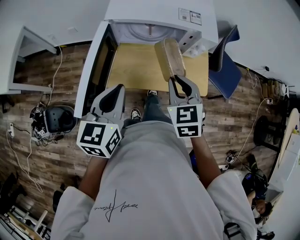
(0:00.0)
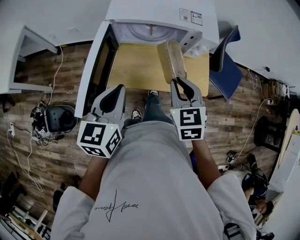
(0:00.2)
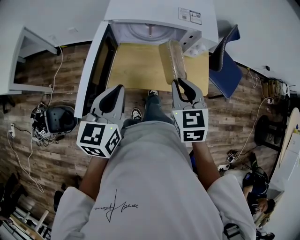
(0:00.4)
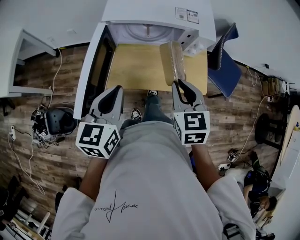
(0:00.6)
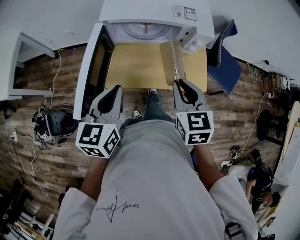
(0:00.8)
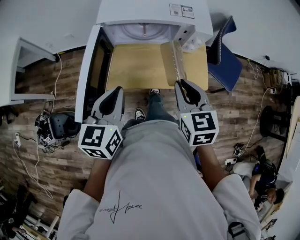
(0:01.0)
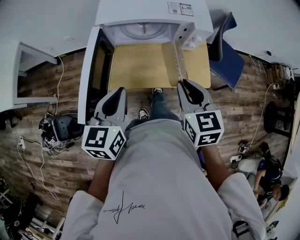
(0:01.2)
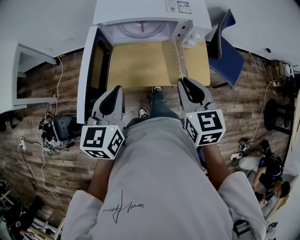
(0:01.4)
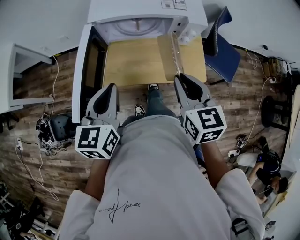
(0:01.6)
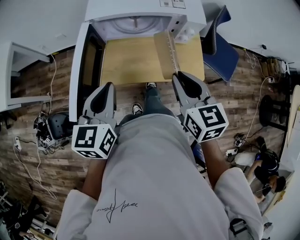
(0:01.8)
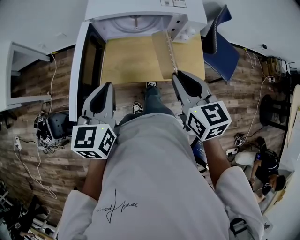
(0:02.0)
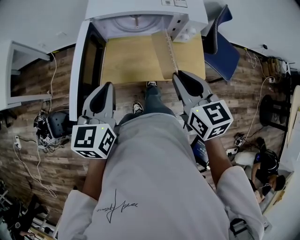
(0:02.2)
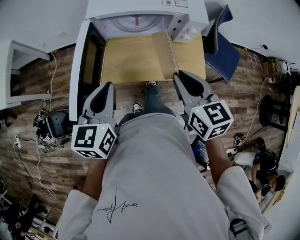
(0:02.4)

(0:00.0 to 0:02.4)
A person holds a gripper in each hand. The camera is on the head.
0:00.0 - 0:01.2: The grippers move only a little.
0:01.2 - 0:02.4: The grippers make only small movements.

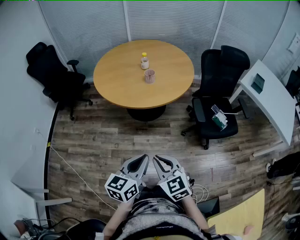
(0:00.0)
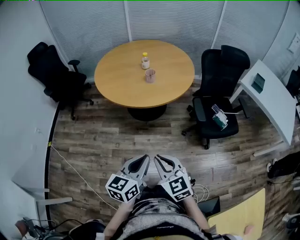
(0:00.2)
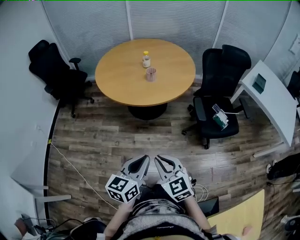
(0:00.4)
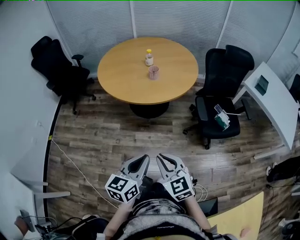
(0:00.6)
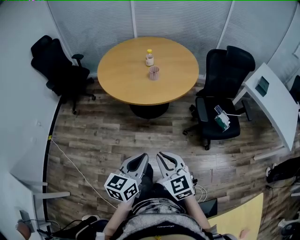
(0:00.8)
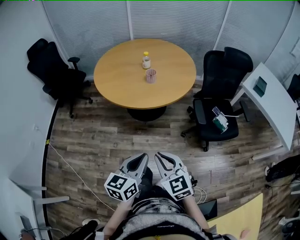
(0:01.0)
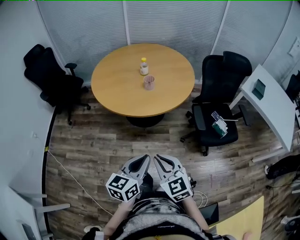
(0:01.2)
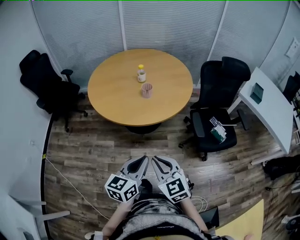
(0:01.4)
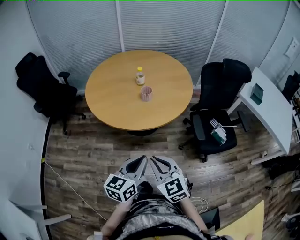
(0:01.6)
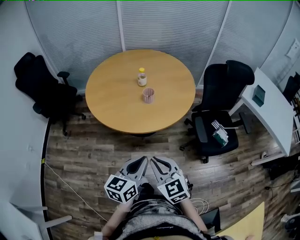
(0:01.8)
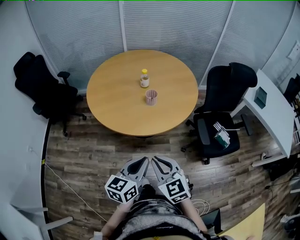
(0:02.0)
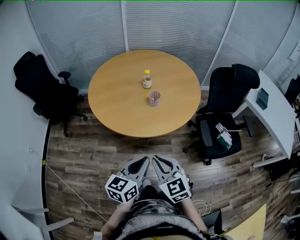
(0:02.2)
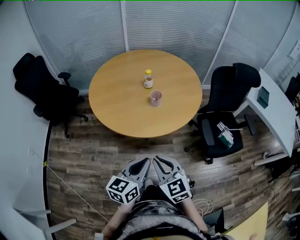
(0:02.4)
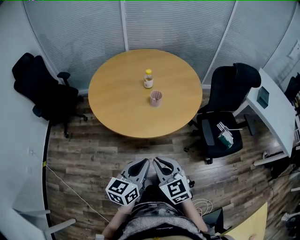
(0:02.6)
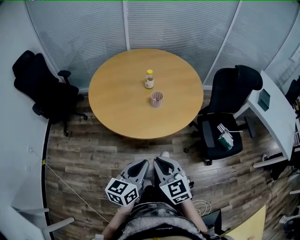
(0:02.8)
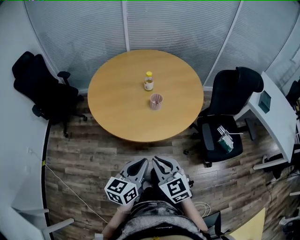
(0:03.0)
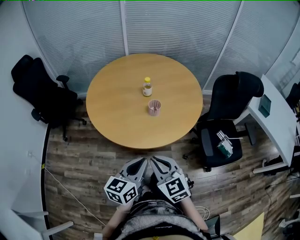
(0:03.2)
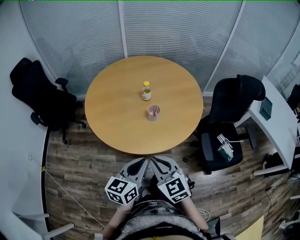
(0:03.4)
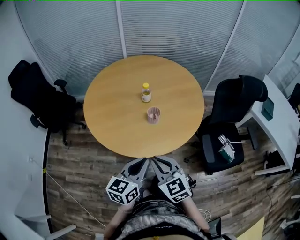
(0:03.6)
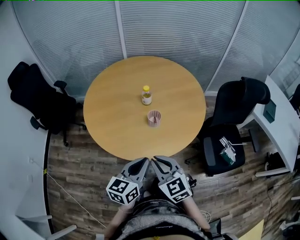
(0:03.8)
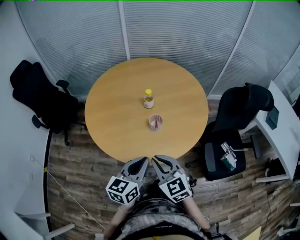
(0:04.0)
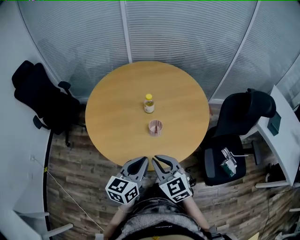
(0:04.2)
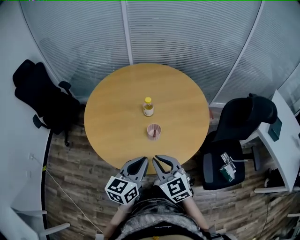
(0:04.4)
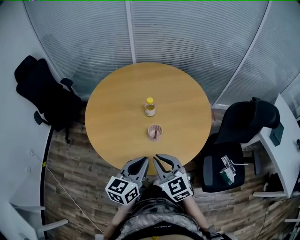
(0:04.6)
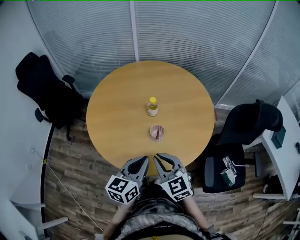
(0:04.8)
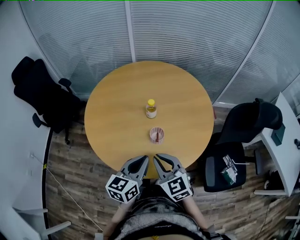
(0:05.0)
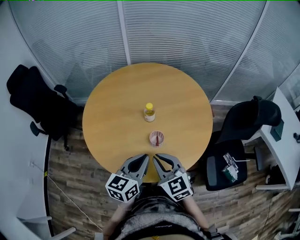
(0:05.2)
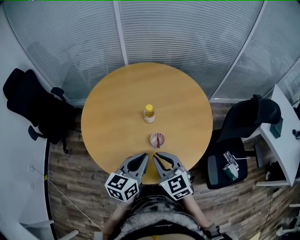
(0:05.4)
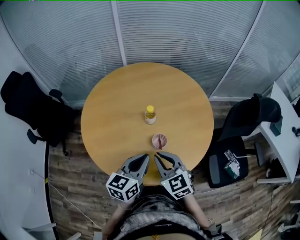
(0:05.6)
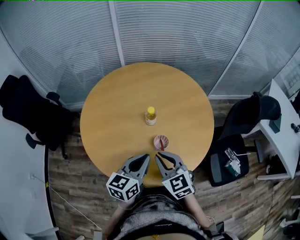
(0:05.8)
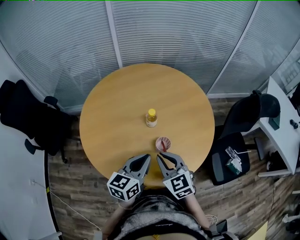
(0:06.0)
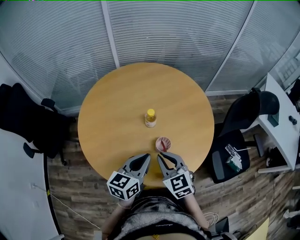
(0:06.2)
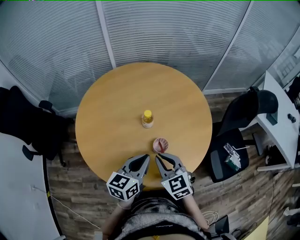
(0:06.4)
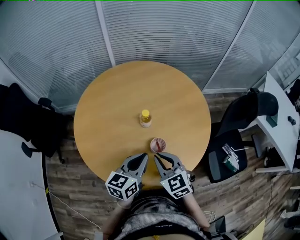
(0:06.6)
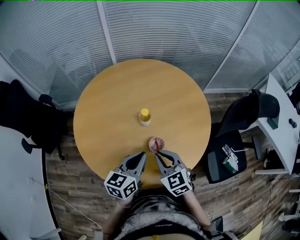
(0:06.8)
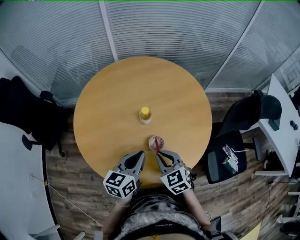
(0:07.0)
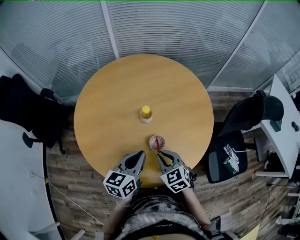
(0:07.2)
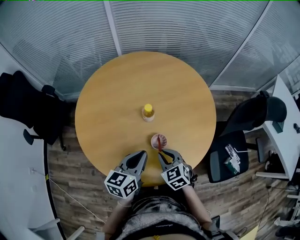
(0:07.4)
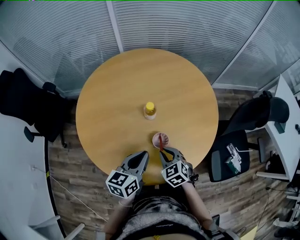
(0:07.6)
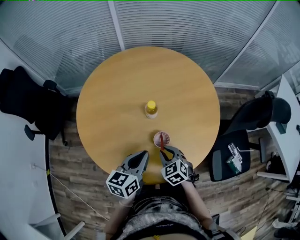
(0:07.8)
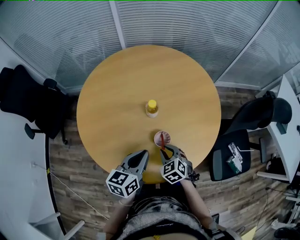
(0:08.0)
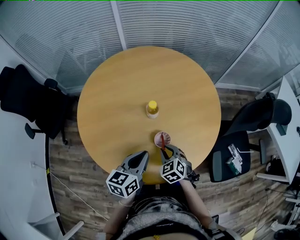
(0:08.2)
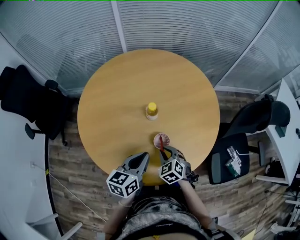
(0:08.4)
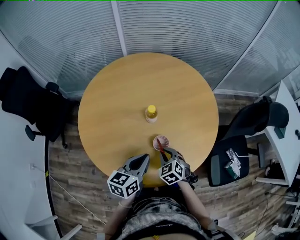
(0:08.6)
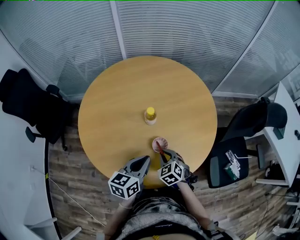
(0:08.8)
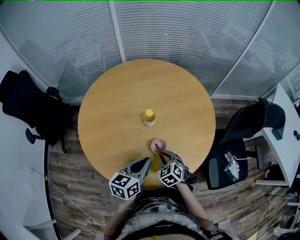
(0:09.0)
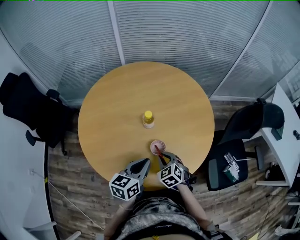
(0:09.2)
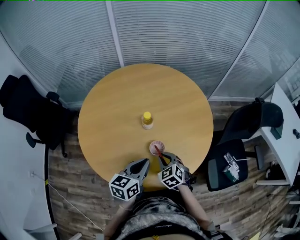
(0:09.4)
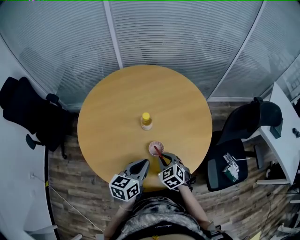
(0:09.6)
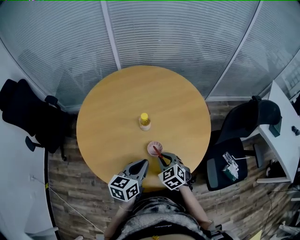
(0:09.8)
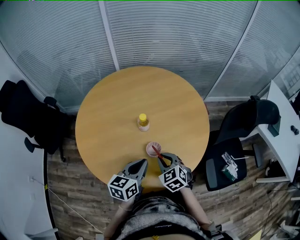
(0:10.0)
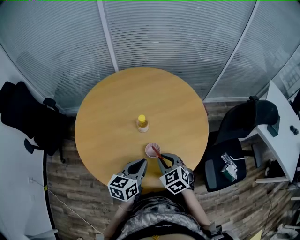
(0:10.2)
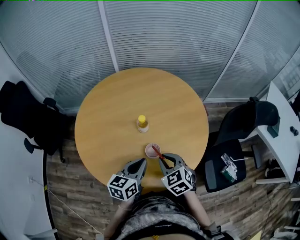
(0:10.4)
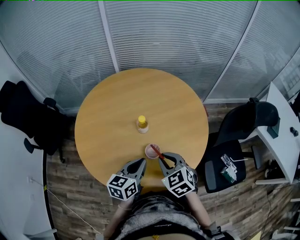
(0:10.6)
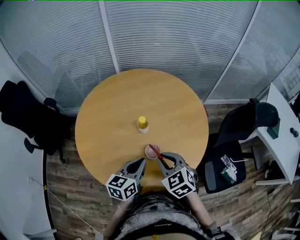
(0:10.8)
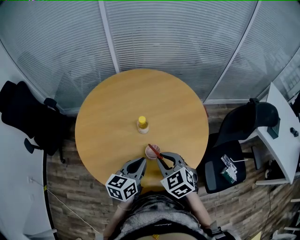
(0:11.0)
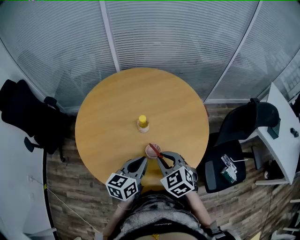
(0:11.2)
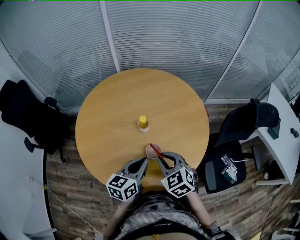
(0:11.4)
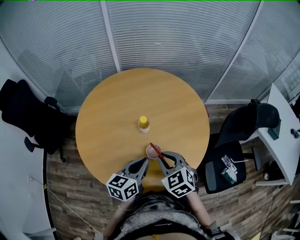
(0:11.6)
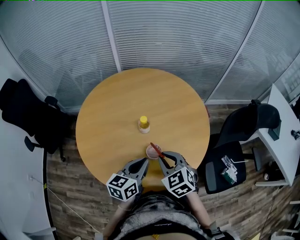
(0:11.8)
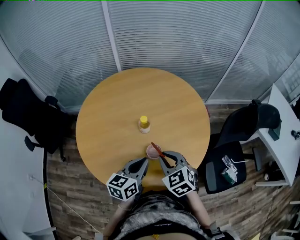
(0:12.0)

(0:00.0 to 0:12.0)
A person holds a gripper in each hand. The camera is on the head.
0:00.0 - 0:01.6: The two grippers go about 15 cm forward.
0:01.6 - 0:03.0: The grippers both shift forward and to the left by approximately 10 cm.
0:03.0 - 0:04.4: Both grippers travel together forward, roughly 20 cm.
0:04.4 - 0:06.0: The grippers both shift forward and to the left by roughly 15 cm.
0:06.0 - 0:07.6: The right gripper is displaced downward by about 15 cm, and rotates about 20 degrees. The left gripper moves about 5 cm.
0:07.6 - 0:09.0: The grippers stay close to where they were, moving slightly.
0:09.0 - 0:10.4: The right gripper moves upward, approximately 10 cm.
0:10.4 - 0:12.0: The grippers move only a little.

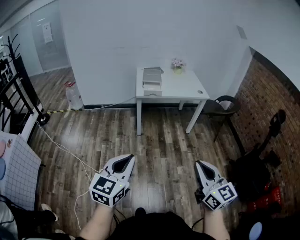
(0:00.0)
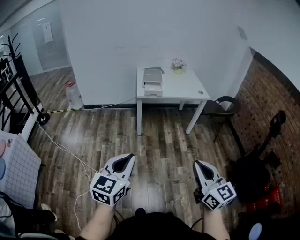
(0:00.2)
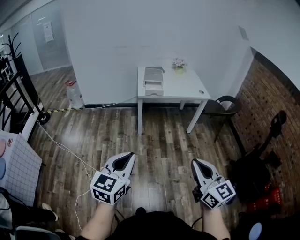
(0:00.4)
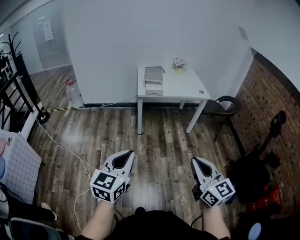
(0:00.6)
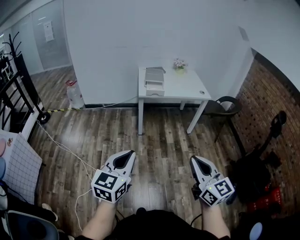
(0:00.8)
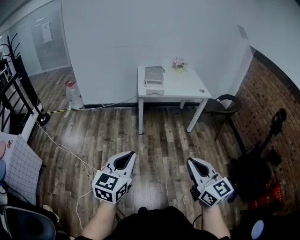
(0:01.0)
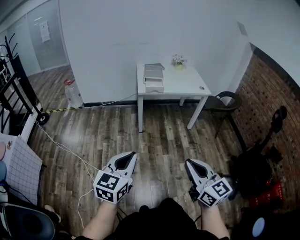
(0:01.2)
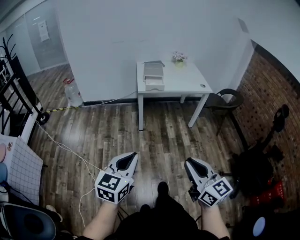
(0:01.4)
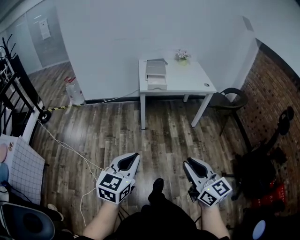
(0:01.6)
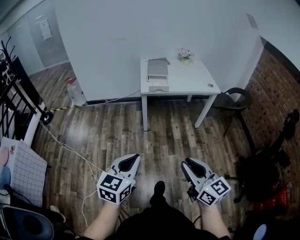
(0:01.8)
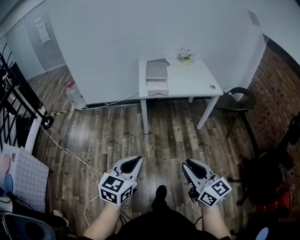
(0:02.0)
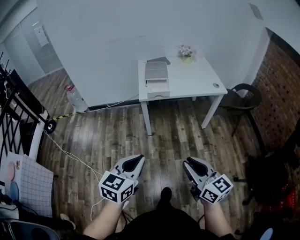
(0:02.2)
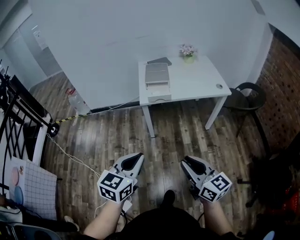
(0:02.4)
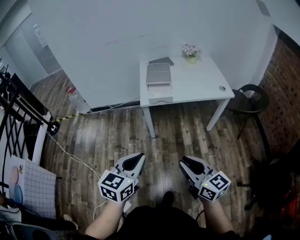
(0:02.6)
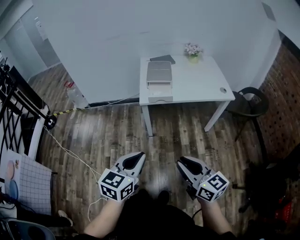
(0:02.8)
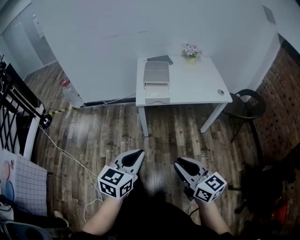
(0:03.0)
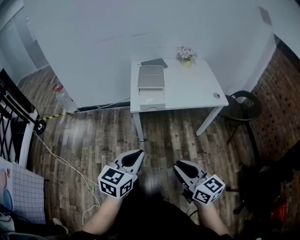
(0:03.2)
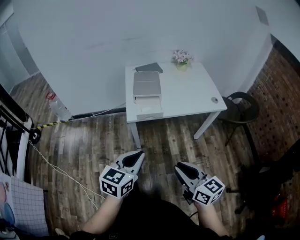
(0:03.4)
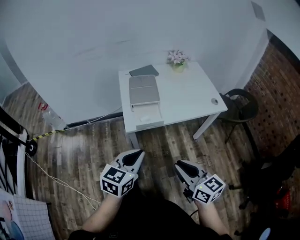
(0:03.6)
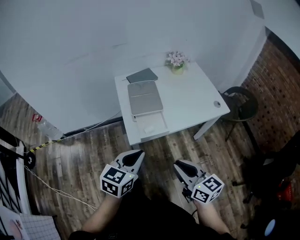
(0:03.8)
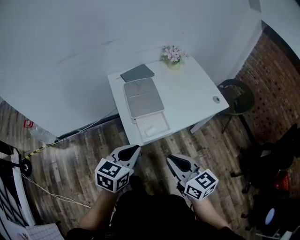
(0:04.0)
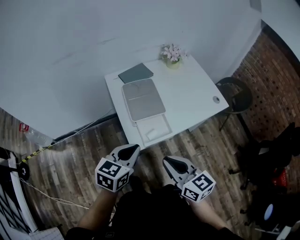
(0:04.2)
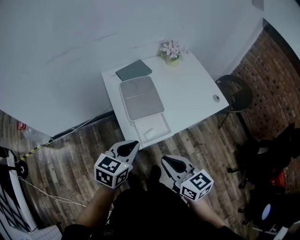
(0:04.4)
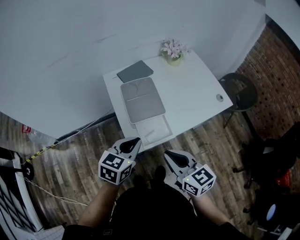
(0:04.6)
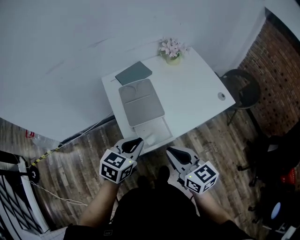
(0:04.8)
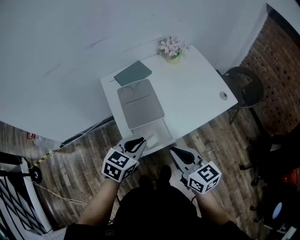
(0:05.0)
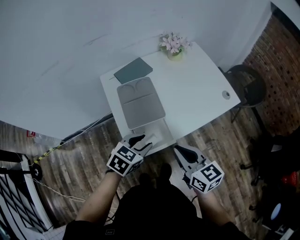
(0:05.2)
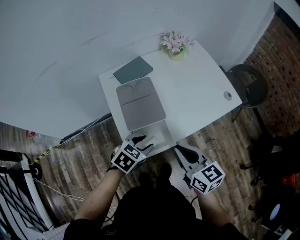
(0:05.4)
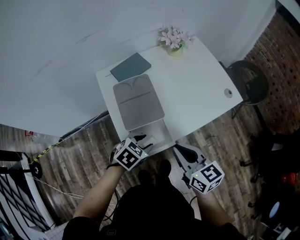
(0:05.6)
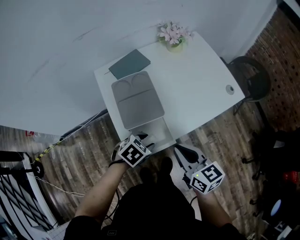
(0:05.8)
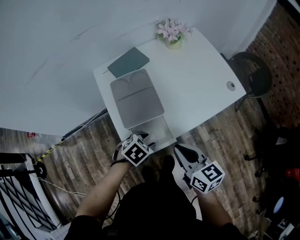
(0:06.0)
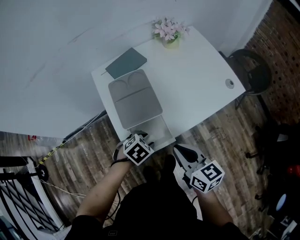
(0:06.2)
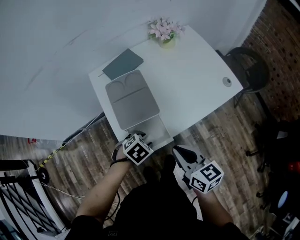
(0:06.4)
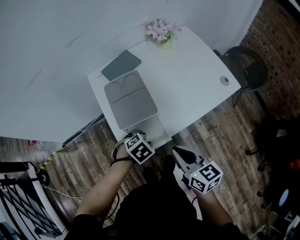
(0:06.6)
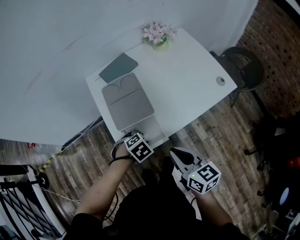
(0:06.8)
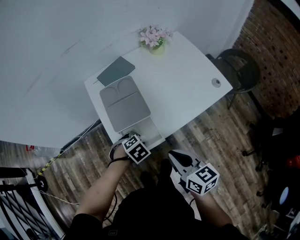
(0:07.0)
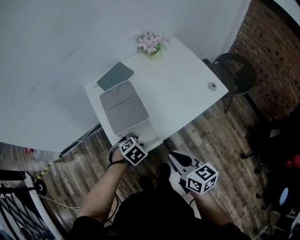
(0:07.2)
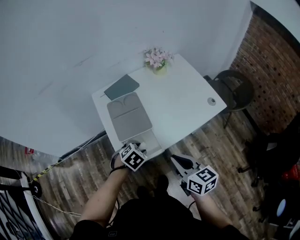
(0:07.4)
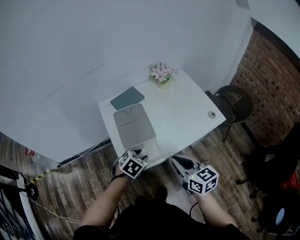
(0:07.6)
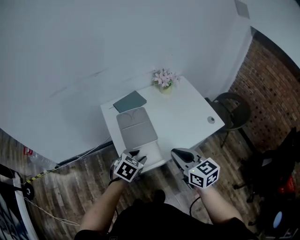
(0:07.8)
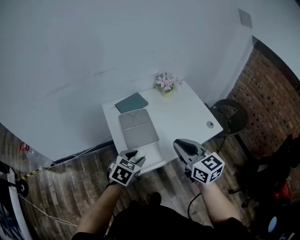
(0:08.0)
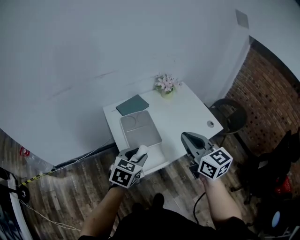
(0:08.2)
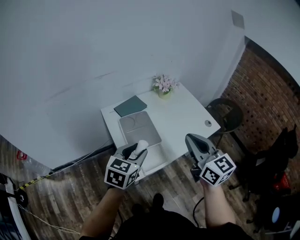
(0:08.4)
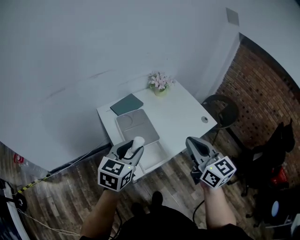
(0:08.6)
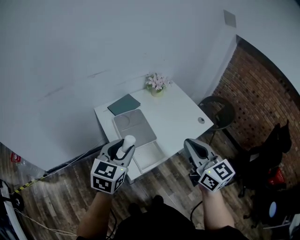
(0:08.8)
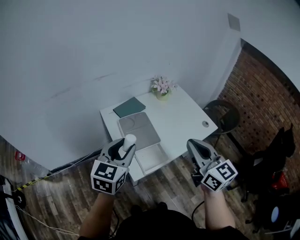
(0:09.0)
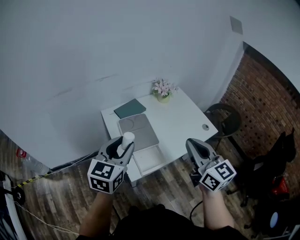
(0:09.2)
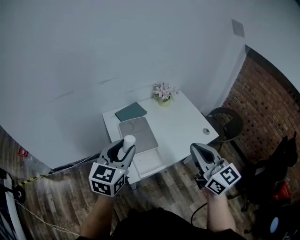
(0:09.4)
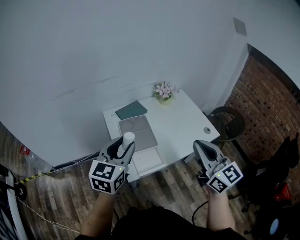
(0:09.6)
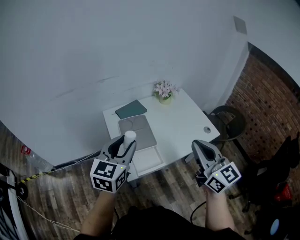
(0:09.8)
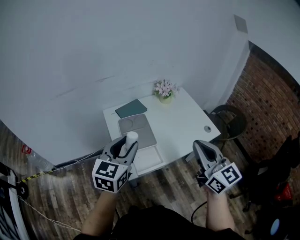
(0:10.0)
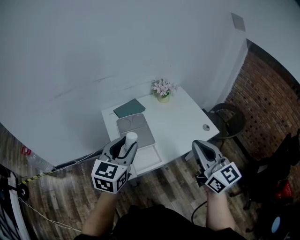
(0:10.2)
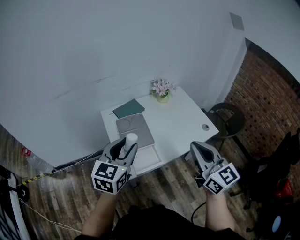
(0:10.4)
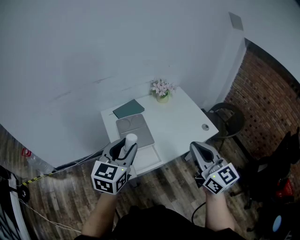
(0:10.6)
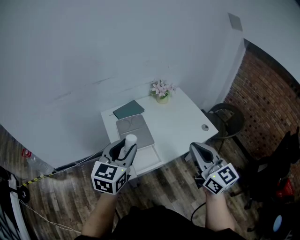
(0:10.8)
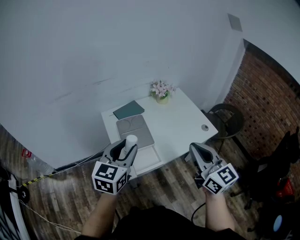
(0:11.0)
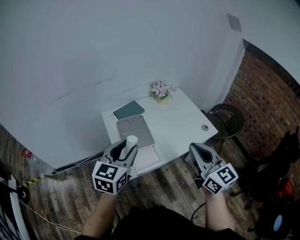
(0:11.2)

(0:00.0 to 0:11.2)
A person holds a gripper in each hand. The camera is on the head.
0:00.0 - 0:01.6: The right gripper goes about 10 cm to the left and forward. Meanwhile the left gripper moves forward, about 5 cm.
0:01.6 - 0:03.2: The two grippers go approximately 35 cm forward.
0:03.2 - 0:04.8: The two grippers travel together, forward, some 40 cm. The left gripper turns by some 30 degrees.
0:04.8 - 0:06.4: The right gripper is displaced downward and forward by about 10 cm. The left gripper goes roughly 20 cm downward, points its fingers roughly 40 degrees further downward, and opens its fingers.
0:06.4 - 0:08.0: The two grippers go some 20 cm upward. The right gripper swivels approximately 20 degrees, while the left gripper rotates about 30 degrees.
0:08.0 - 0:09.6: The right gripper moves upward, to the right and backward, roughly 15 cm, while the left gripper travels upward by about 20 cm, and tilts its fingers about 30 degrees upward.
0:09.6 - 0:11.2: The grippers stay close to where they were, moving slightly.
